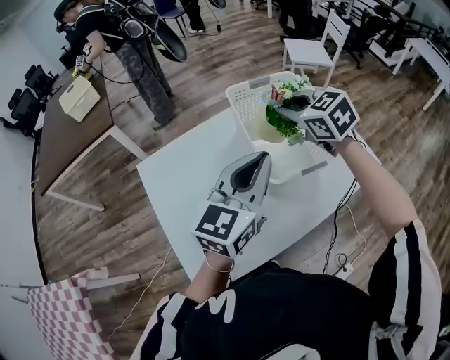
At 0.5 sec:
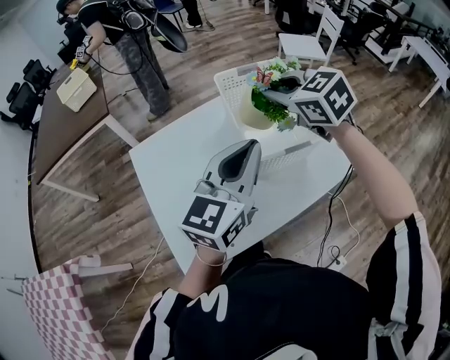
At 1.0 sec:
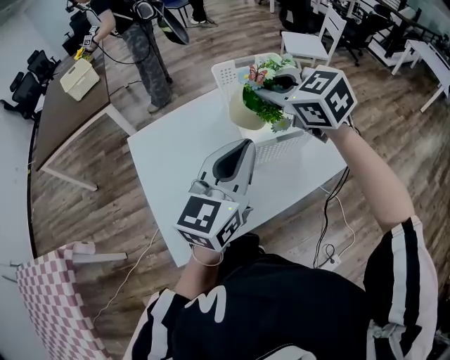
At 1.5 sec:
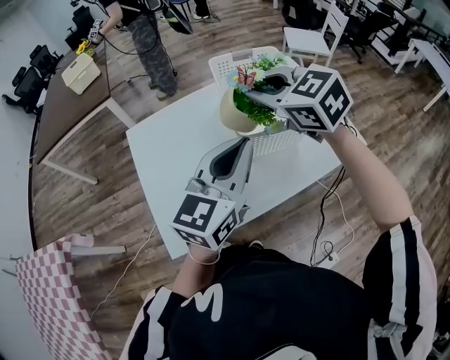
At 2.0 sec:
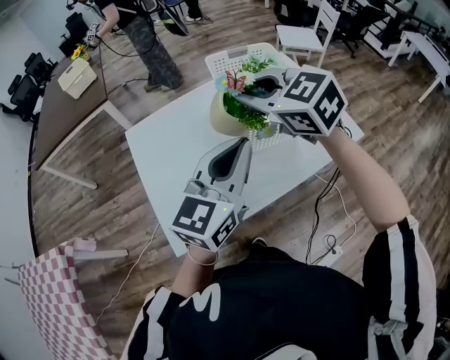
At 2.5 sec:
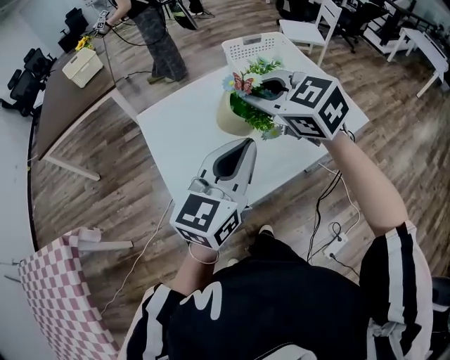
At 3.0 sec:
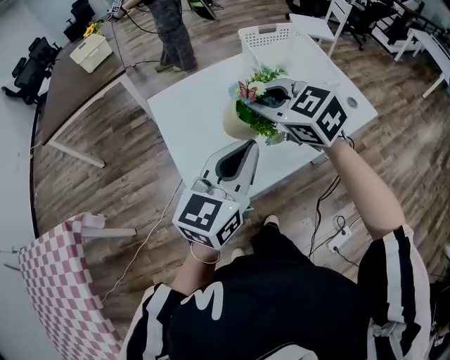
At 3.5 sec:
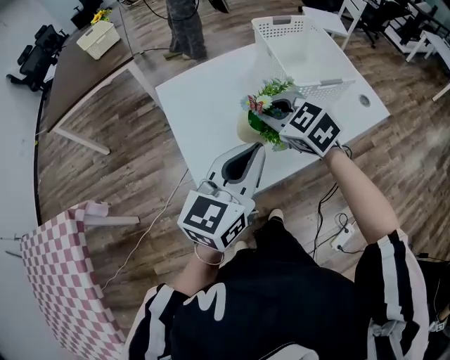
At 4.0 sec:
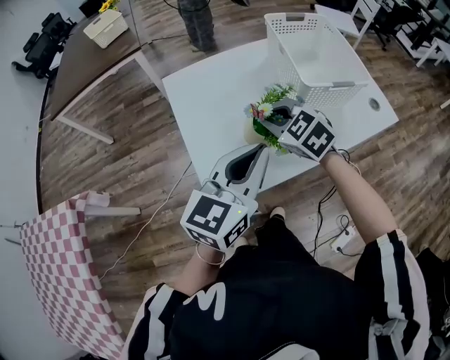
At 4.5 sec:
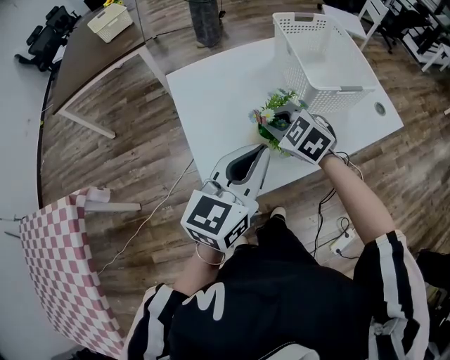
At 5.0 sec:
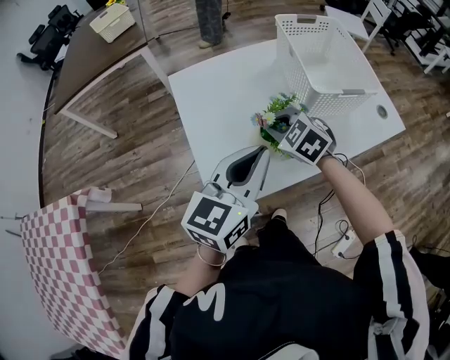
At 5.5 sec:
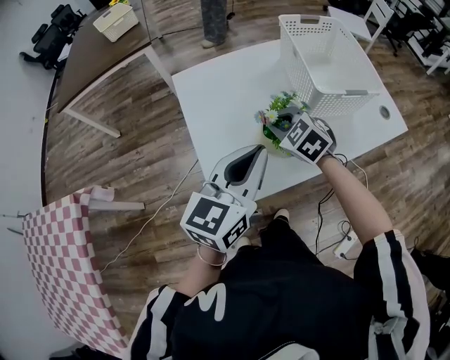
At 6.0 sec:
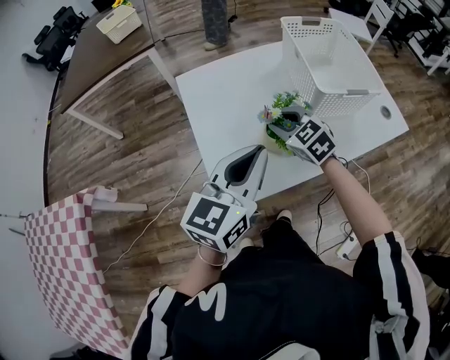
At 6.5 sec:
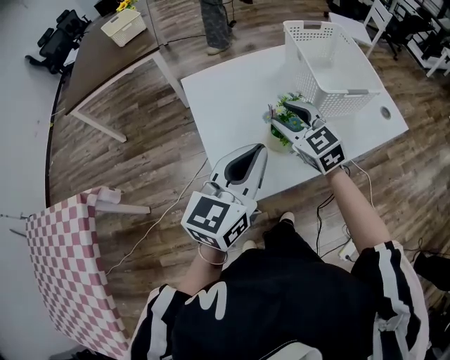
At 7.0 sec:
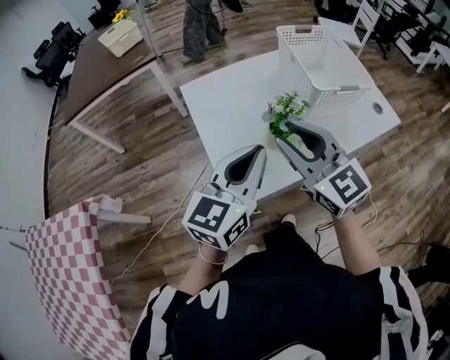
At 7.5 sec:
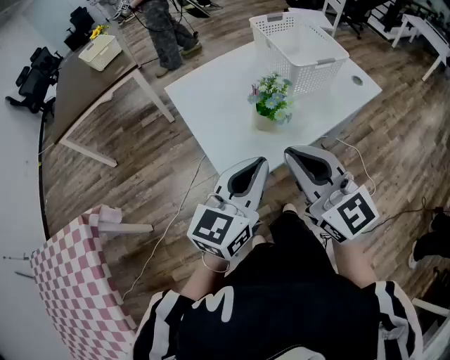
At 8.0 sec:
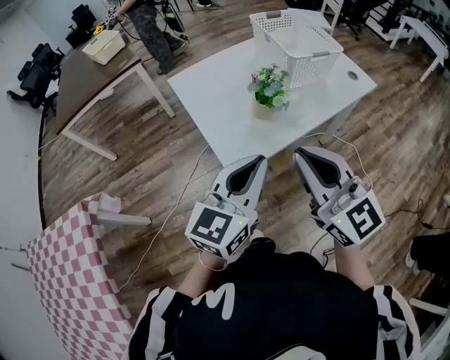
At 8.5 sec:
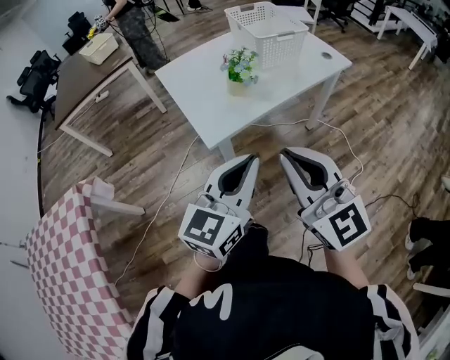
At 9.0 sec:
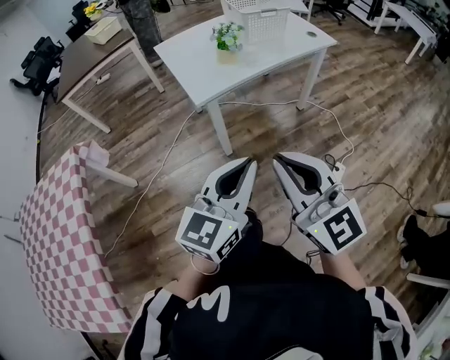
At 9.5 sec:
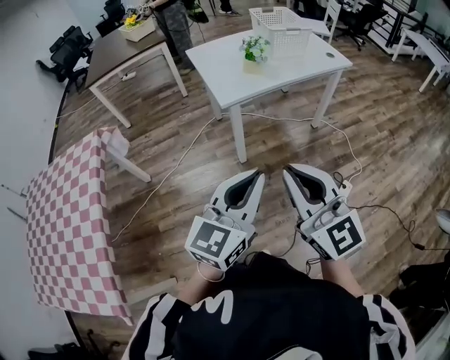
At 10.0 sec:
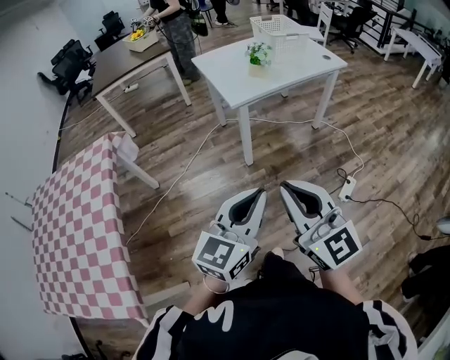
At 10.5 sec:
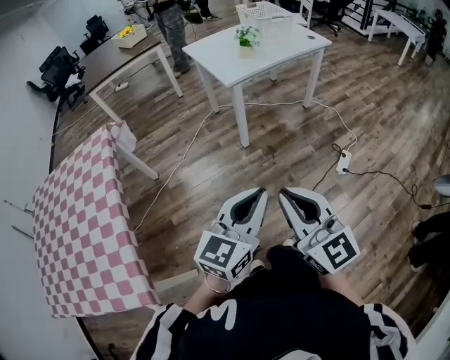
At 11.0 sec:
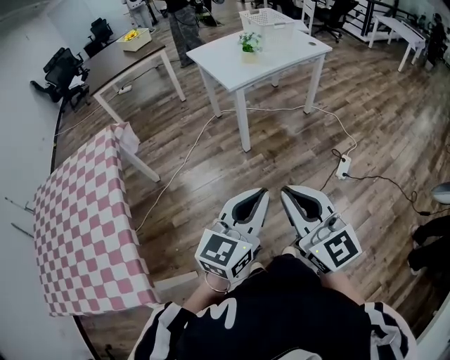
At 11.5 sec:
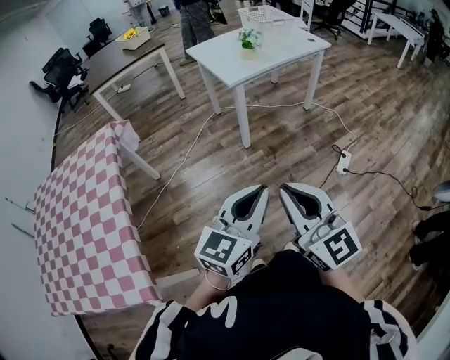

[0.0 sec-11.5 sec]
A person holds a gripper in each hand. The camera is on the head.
0.0 sec to 2.0 sec: The right gripper travels backward, upward and to the left by approximately 20 cm; the left gripper moves backward, roughly 10 cm.
2.0 sec to 4.0 sec: The left gripper travels to the left, backward and downward by some 15 cm. The right gripper goes roughly 20 cm downward and to the left.
4.0 sec to 6.0 sec: The right gripper changes place by roughly 5 cm.
6.0 sec to 7.5 sec: The right gripper is displaced backward and upward by about 30 cm, points its fingers roughly 40 degrees further upward, and closes up. The left gripper travels backward by roughly 10 cm.
7.5 sec to 9.5 sec: The pair of grippers is taken backward, about 40 cm.
9.5 sec to 11.5 sec: Both grippers travel together backward and to the left, about 25 cm.

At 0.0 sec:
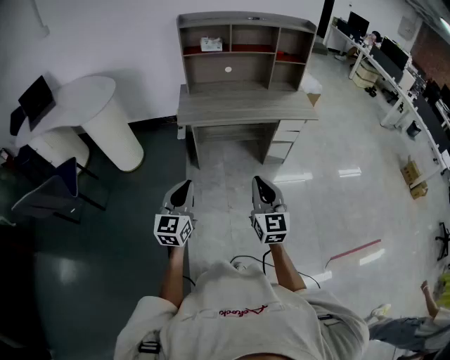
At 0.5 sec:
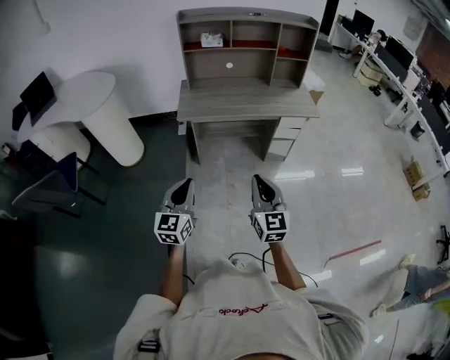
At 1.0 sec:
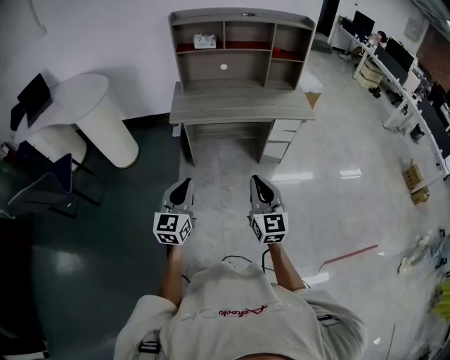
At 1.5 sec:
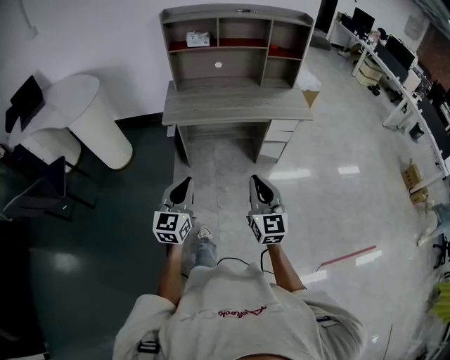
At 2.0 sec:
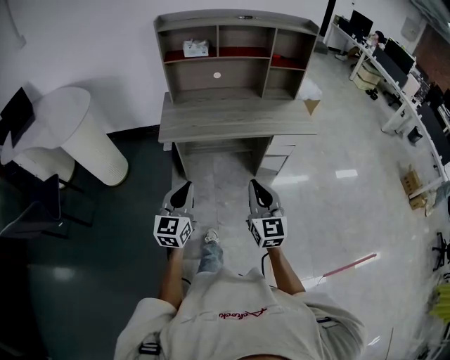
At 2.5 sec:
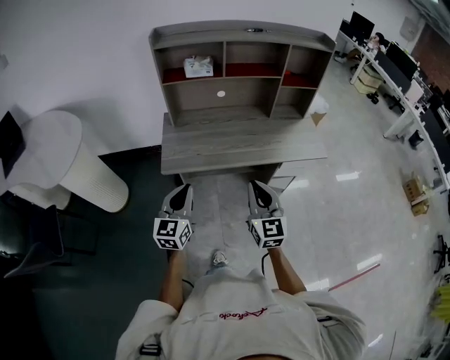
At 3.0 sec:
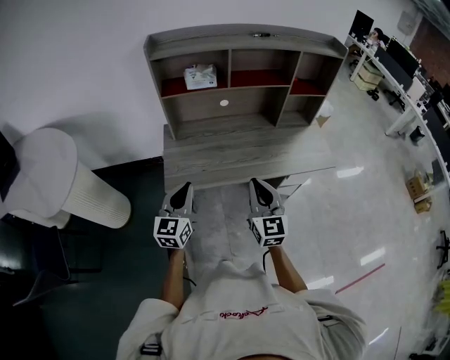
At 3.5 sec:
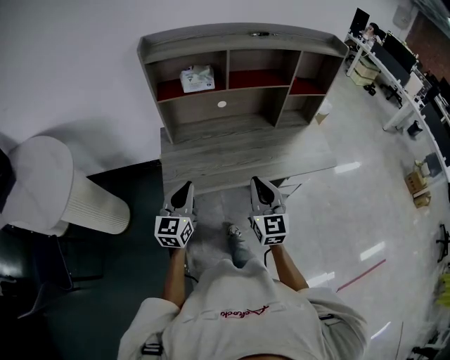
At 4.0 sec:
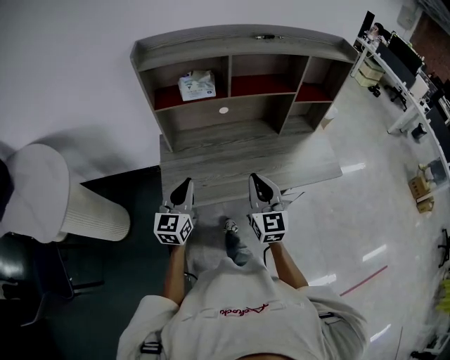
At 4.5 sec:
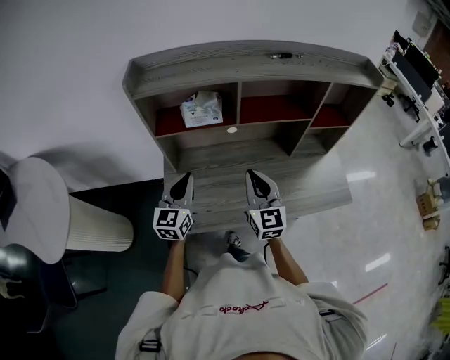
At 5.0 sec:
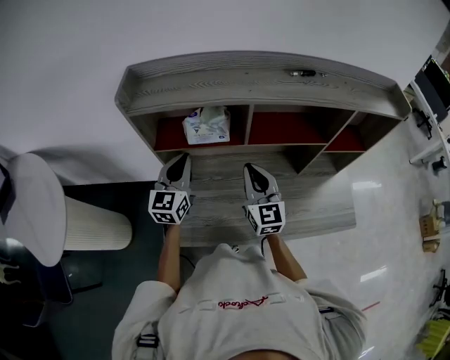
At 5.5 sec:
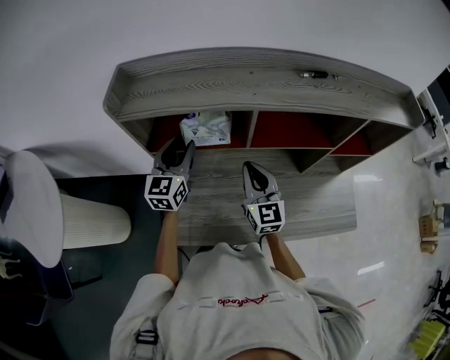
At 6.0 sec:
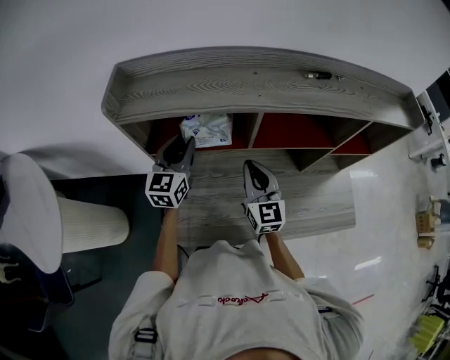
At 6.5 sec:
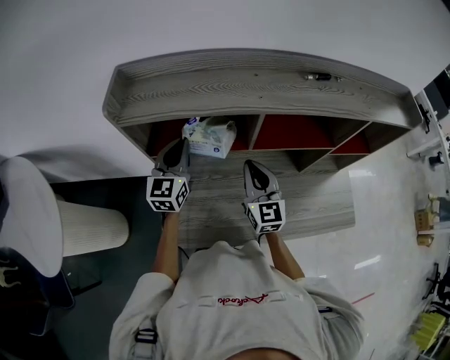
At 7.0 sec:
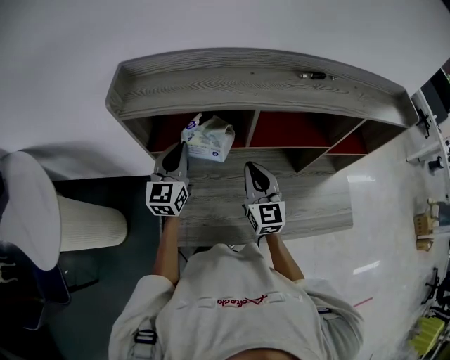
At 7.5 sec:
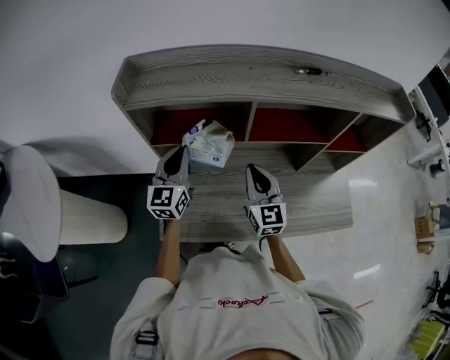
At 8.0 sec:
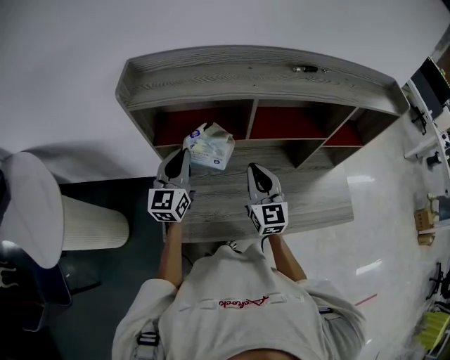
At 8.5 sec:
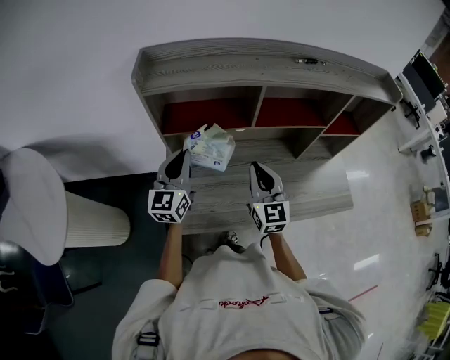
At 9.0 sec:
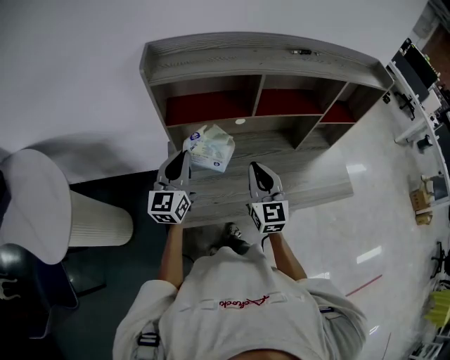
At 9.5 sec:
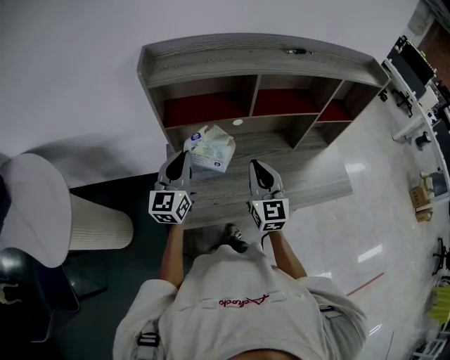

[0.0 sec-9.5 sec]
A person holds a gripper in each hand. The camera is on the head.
0.0 sec to 2.0 sec: The left gripper shifts some 20 cm forward and to the right. Meanwhile the right gripper shifts some 15 cm forward.
2.0 sec to 4.0 sec: The two grippers travel together, forward, approximately 40 cm.
4.0 sec to 5.5 sec: The grippers both shift forward by approximately 30 cm. The left gripper opens.
5.5 sec to 7.5 sec: The left gripper goes some 5 cm backward, and closes up.
7.5 sec to 9.5 sec: Both grippers move backward, about 10 cm.

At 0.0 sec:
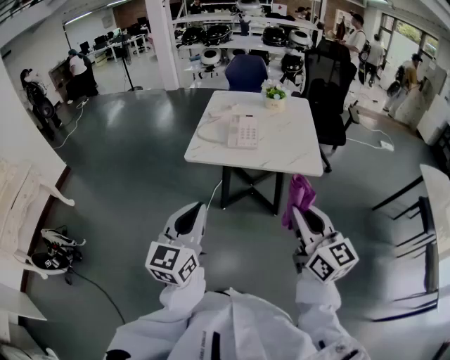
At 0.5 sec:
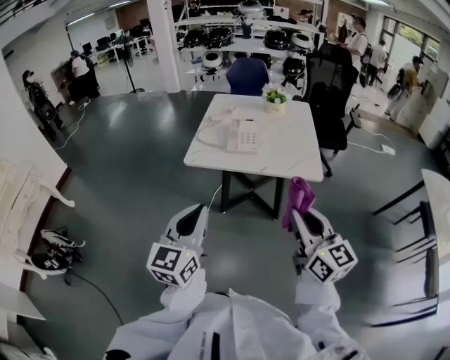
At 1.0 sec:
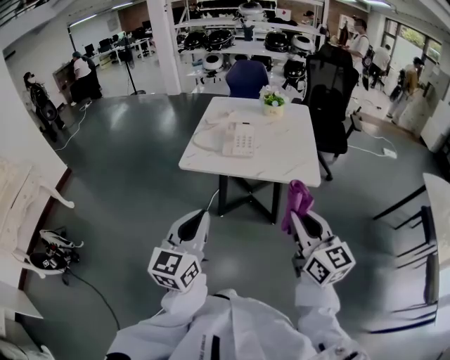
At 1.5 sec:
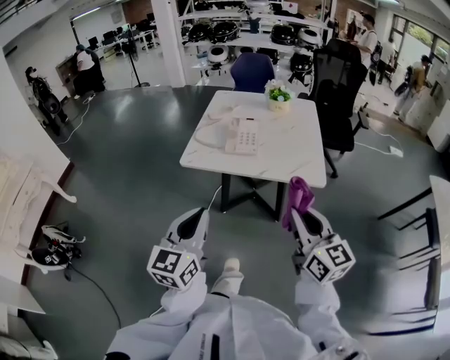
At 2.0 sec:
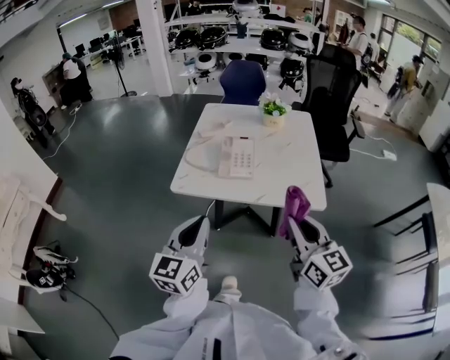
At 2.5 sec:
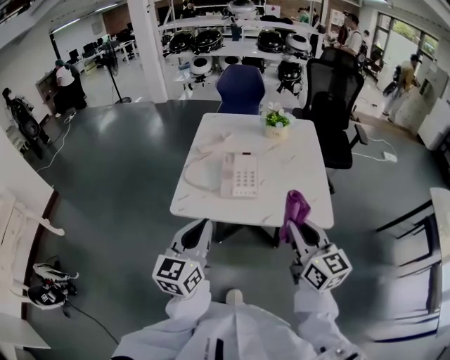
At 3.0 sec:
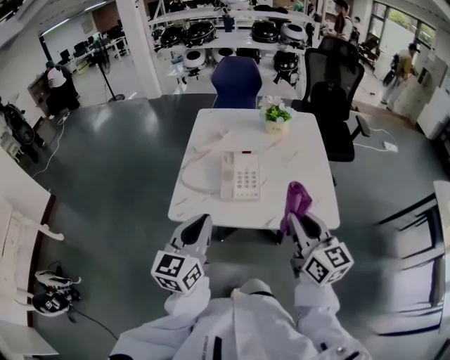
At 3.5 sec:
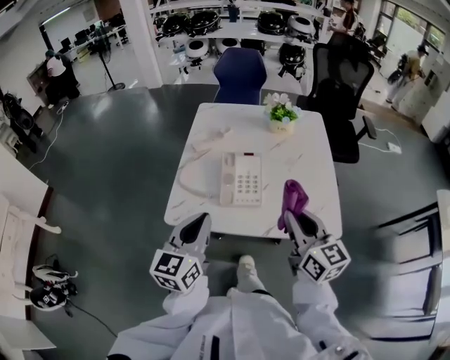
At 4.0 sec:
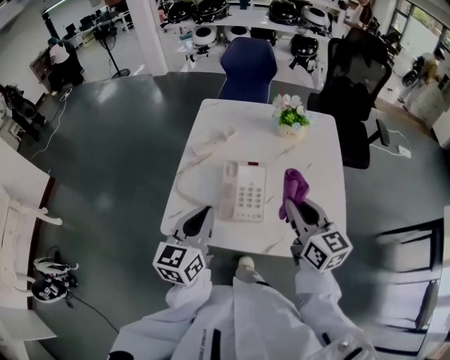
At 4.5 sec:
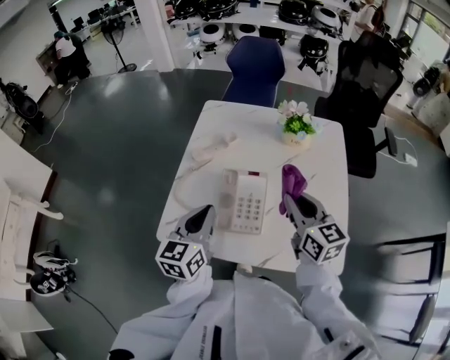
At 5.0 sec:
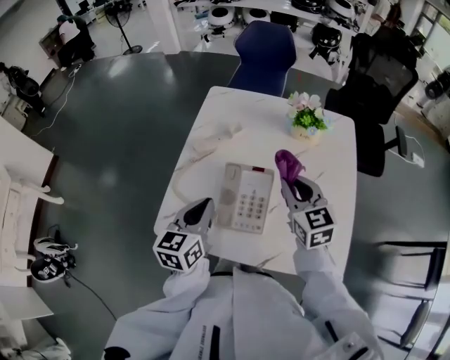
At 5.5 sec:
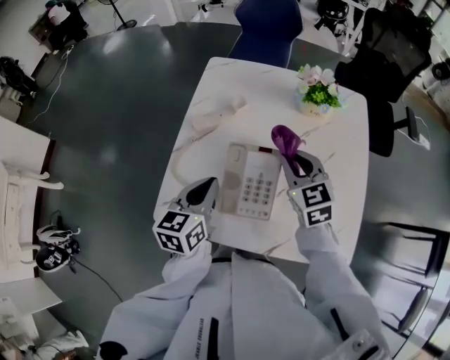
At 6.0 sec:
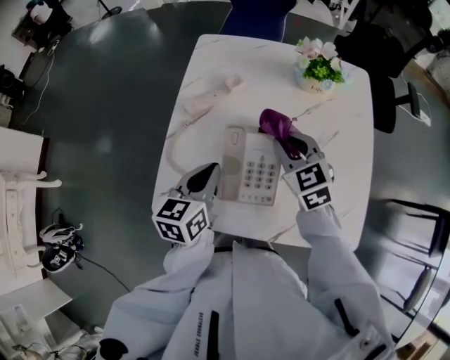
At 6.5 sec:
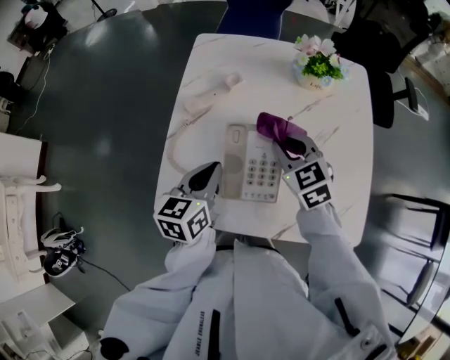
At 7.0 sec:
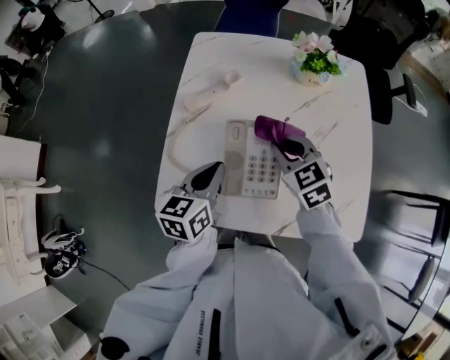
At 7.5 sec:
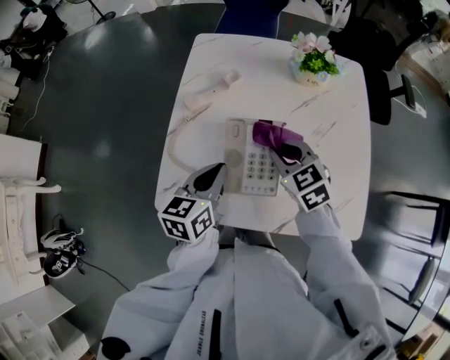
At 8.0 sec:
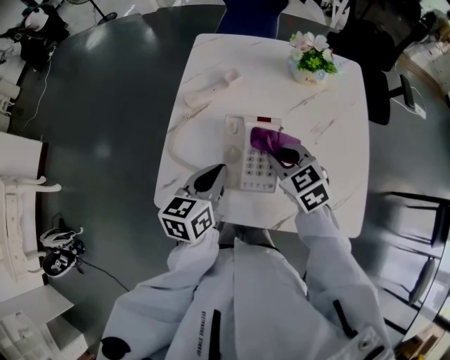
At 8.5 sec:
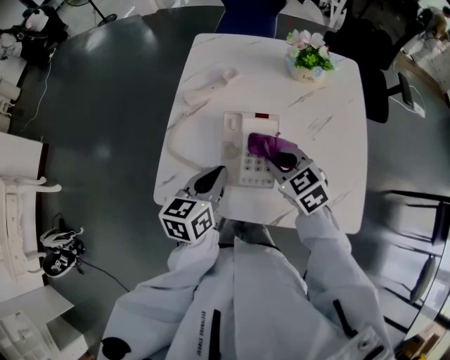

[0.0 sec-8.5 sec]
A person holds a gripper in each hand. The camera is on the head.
0.0 sec to 2.0 sec: Both grippers move forward, some 15 cm.
2.0 sec to 4.0 sec: The two grippers go some 30 cm forward.
4.0 sec to 6.5 sec: The left gripper goes some 15 cm downward and forward, while the right gripper travels forward and downward by about 20 cm, and changes its angle by approximately 40 degrees.
6.5 sec to 8.5 sec: The left gripper goes about 5 cm backward; the right gripper goes about 10 cm backward.
